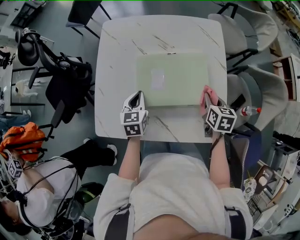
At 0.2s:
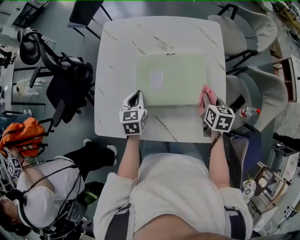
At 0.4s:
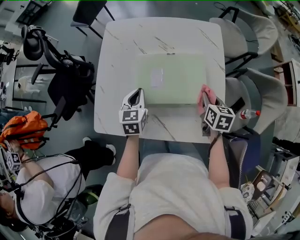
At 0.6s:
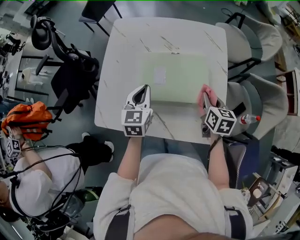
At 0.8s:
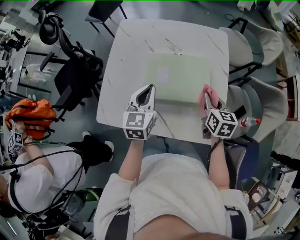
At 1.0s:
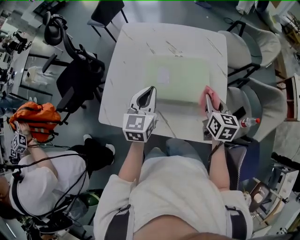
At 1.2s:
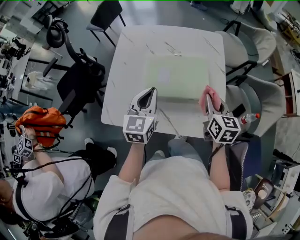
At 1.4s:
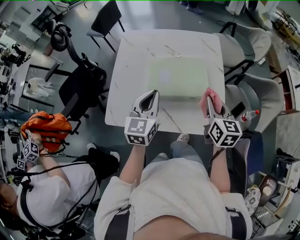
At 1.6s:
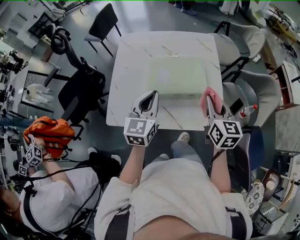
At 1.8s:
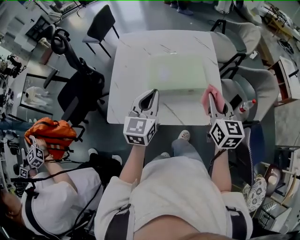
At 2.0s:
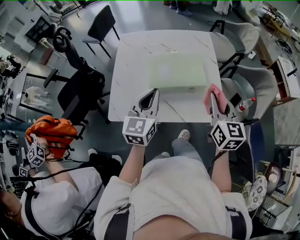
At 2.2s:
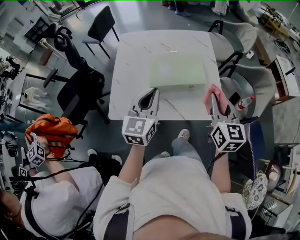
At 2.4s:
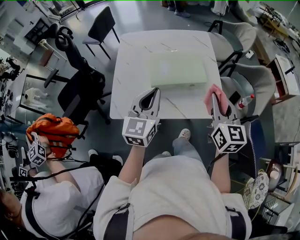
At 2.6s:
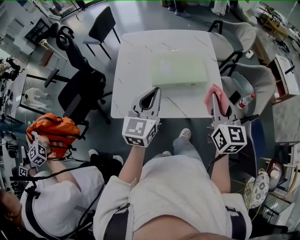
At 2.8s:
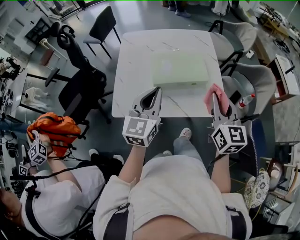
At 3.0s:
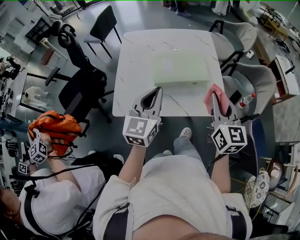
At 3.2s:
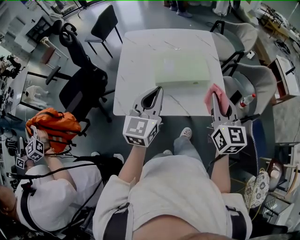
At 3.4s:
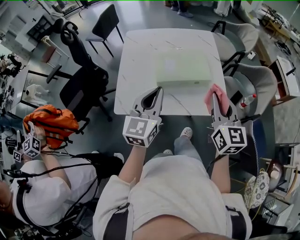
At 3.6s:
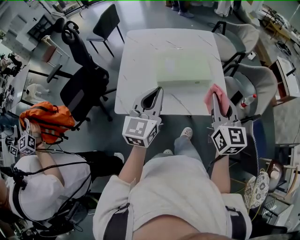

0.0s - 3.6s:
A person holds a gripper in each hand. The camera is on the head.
0.0s - 1.8s: Both grippers move upward and backward, about 25 cm. The left gripper swivels some 30 degrees. The right gripper points its fingers about 30 degrees further upward.
1.8s - 3.6s: The right gripper is displaced backward and upward by about 10 cm; the left gripper goes some 10 cm backward.

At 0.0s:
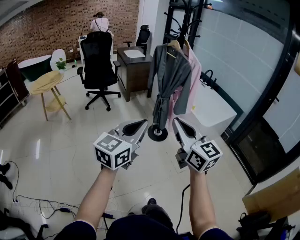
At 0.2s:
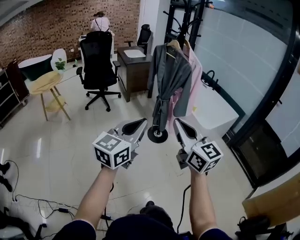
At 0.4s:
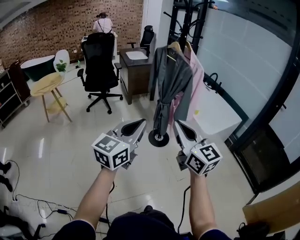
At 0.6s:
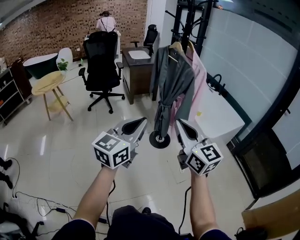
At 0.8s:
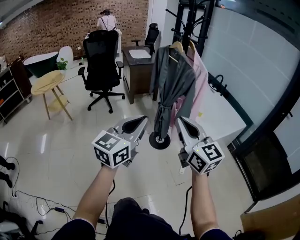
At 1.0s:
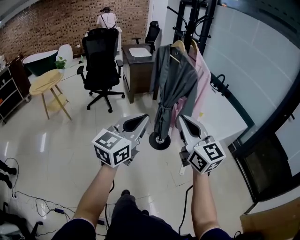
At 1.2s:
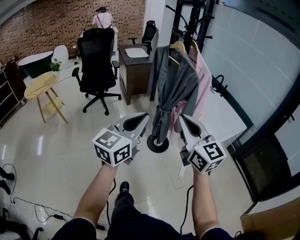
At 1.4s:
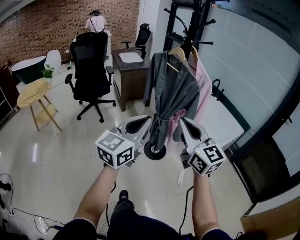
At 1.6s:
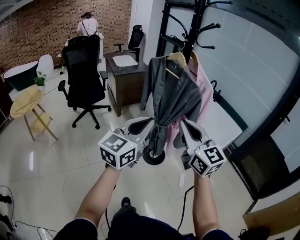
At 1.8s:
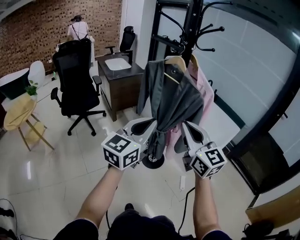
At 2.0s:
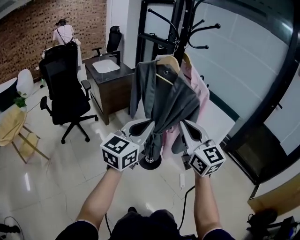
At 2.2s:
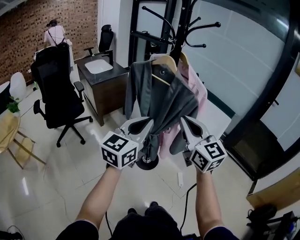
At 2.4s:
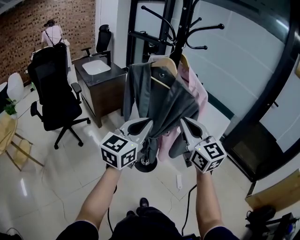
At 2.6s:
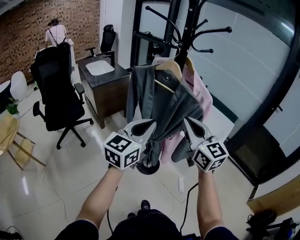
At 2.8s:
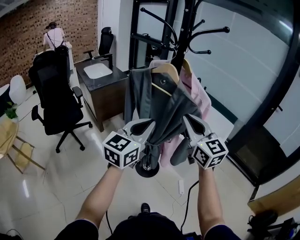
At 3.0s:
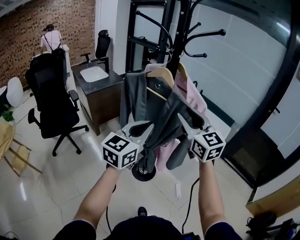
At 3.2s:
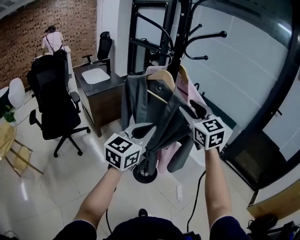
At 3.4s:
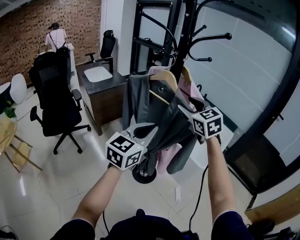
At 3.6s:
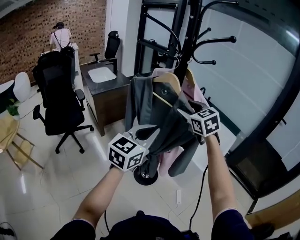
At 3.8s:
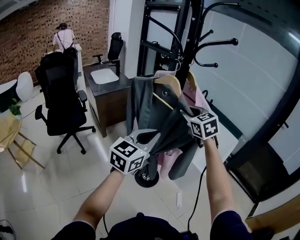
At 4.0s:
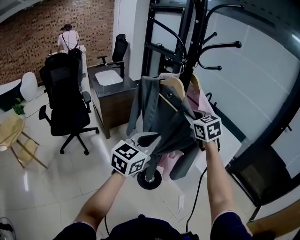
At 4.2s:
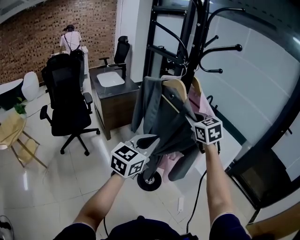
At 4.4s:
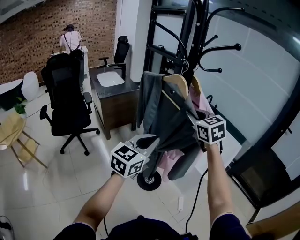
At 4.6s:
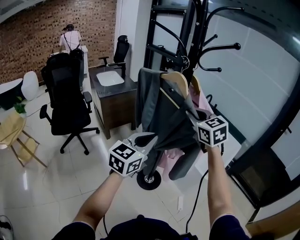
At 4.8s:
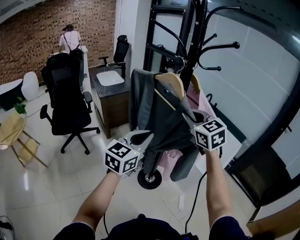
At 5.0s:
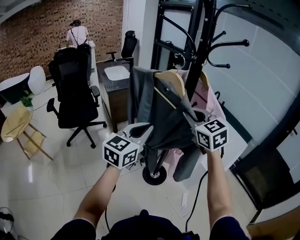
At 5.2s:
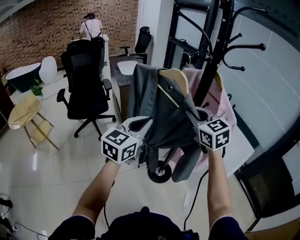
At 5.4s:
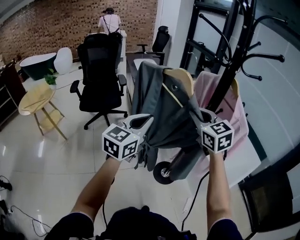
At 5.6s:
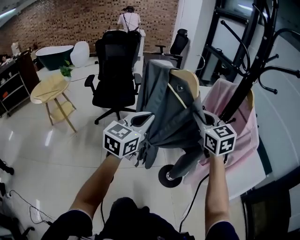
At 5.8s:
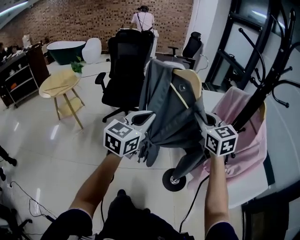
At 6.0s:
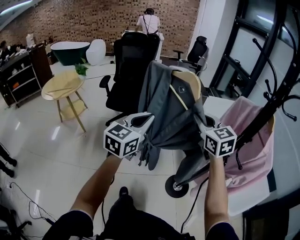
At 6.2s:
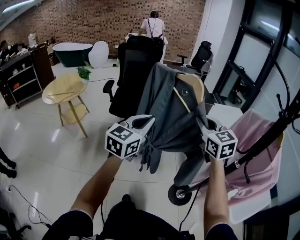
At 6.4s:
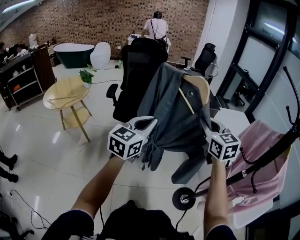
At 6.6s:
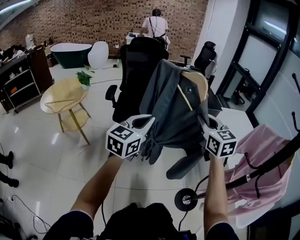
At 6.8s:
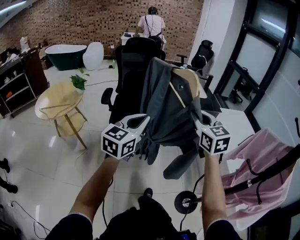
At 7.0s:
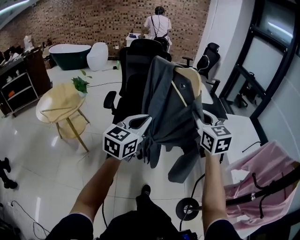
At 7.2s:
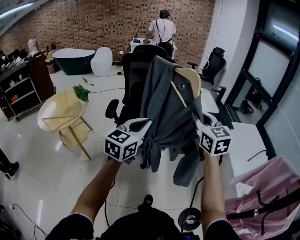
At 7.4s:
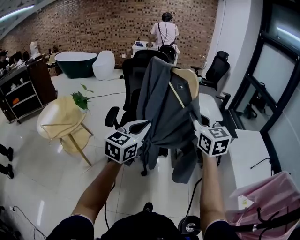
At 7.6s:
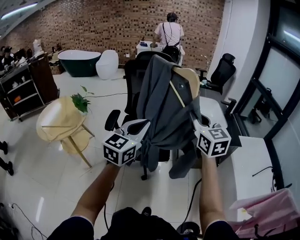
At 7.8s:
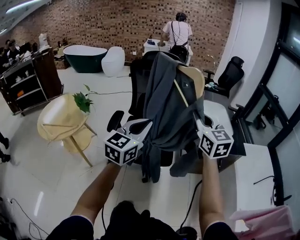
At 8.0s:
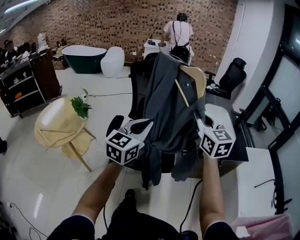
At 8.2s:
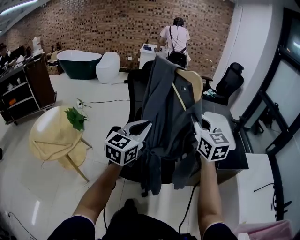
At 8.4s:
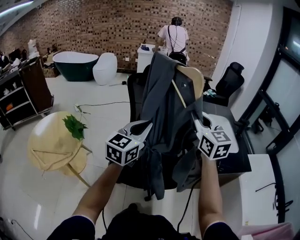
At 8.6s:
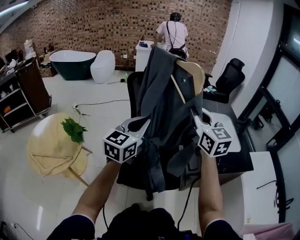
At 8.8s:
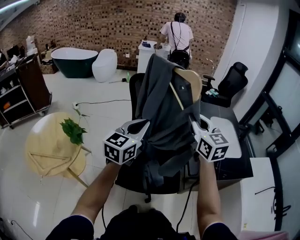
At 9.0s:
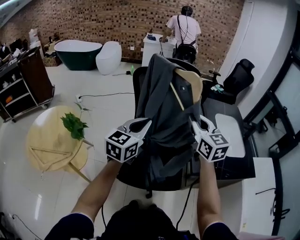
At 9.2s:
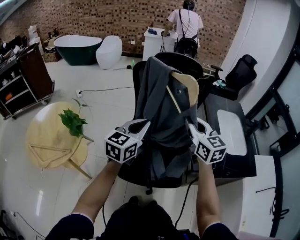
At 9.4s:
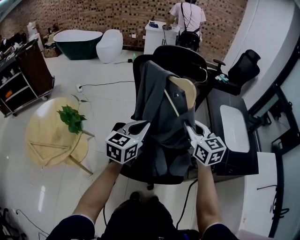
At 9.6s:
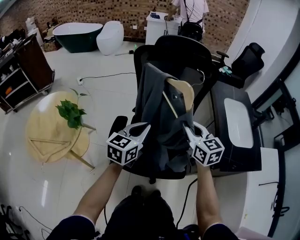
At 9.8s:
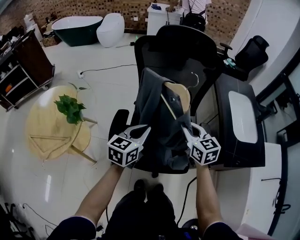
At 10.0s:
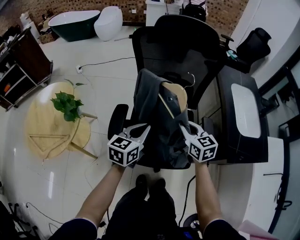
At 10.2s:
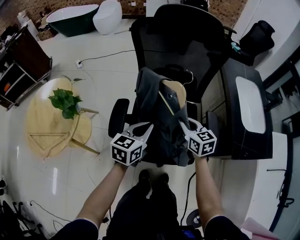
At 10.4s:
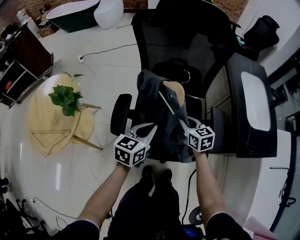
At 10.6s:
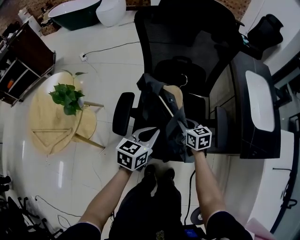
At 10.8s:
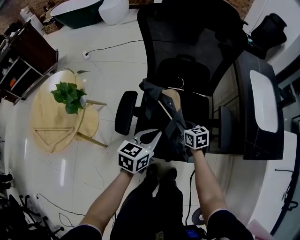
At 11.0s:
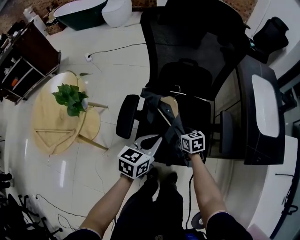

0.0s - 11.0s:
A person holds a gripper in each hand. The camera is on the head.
0.0s - 1.6s: Both grippers move forward, some 35 cm.
1.6s - 3.2s: Both grippers travel together forward, about 25 cm. The right gripper turns by about 30 degrees, and opens.
3.2s - 4.8s: The right gripper reaches some 10 cm forward, then returns, and closes its fingers.
4.8s - 6.2s: The right gripper changes place by about 35 cm, and changes its angle by roughly 20 degrees. Meanwhile the left gripper changes place by approximately 35 cm, and changes its angle by some 30 degrees.
6.2s - 7.8s: The two grippers travel together, forward and to the left, about 50 cm.
7.8s - 9.4s: The left gripper shifts about 30 cm forward and to the left; the right gripper travels forward, to the left and downward by about 30 cm.
9.4s - 11.0s: The left gripper moves downward, approximately 20 cm, and turns by approximately 20 degrees, while the right gripper heads downward, covering approximately 35 cm, and turns by roughly 30 degrees.

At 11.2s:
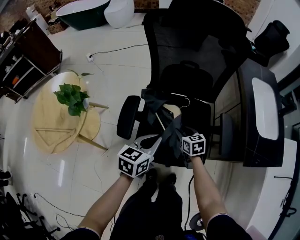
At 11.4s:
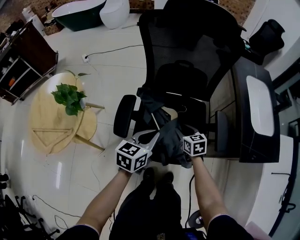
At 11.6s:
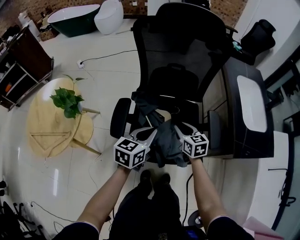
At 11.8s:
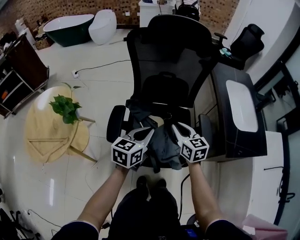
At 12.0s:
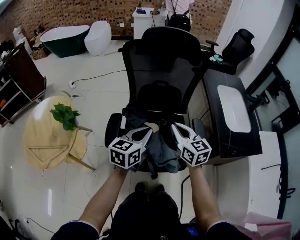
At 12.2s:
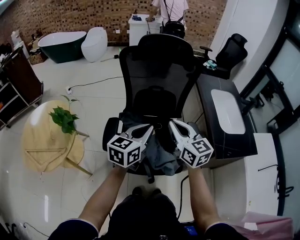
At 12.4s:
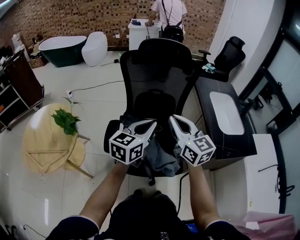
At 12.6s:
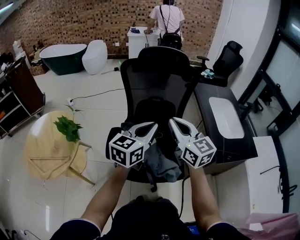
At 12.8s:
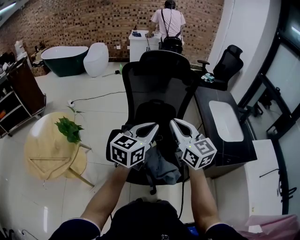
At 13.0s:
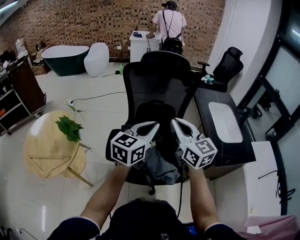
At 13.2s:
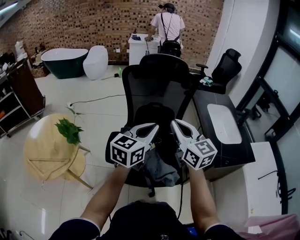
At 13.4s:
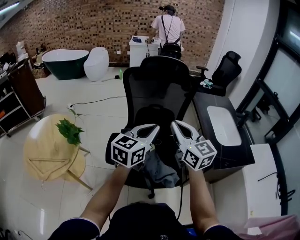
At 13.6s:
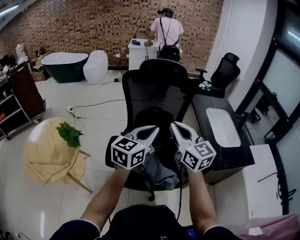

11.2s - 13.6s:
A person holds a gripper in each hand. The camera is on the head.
11.2s - 12.4s: The right gripper heads upward, covering roughly 40 cm, angles its fingers upward, by approximately 40 degrees, and closes its fingers, while the left gripper moves upward, roughly 20 cm, and swivels some 20 degrees.
12.4s - 13.6s: The left gripper heads upward, covering approximately 5 cm.

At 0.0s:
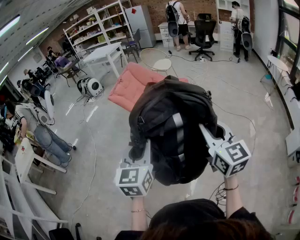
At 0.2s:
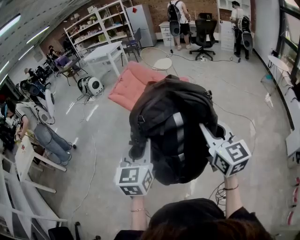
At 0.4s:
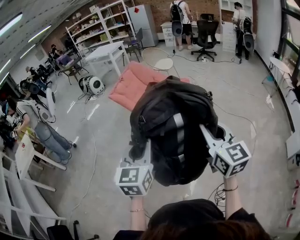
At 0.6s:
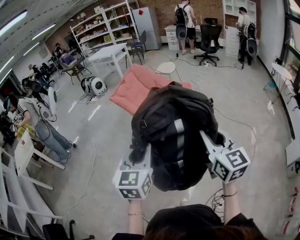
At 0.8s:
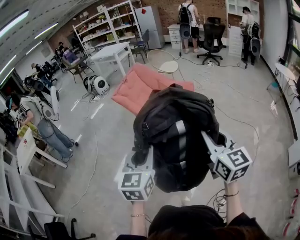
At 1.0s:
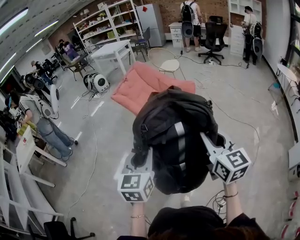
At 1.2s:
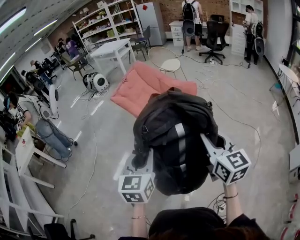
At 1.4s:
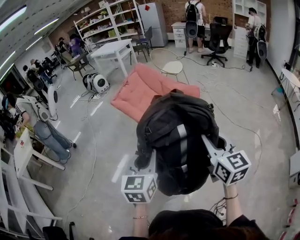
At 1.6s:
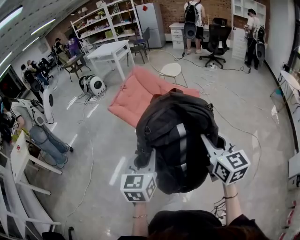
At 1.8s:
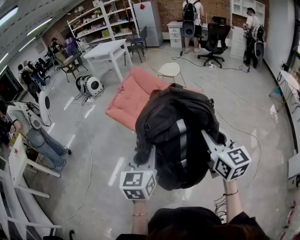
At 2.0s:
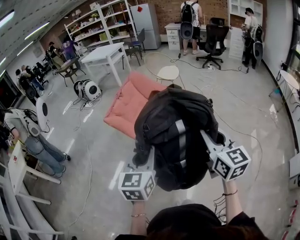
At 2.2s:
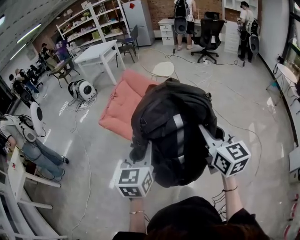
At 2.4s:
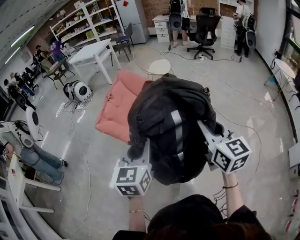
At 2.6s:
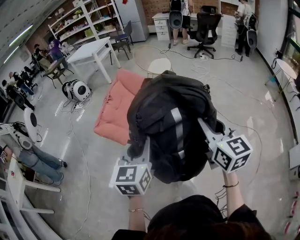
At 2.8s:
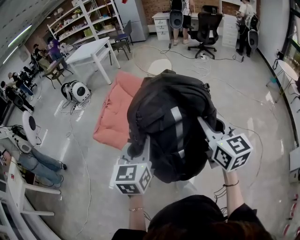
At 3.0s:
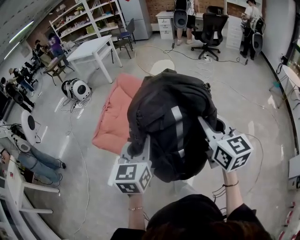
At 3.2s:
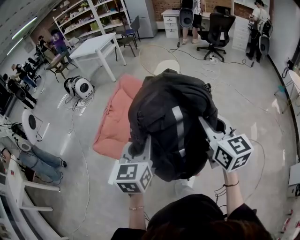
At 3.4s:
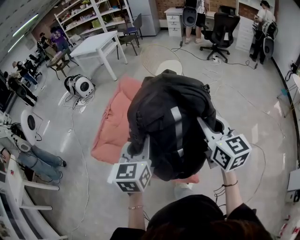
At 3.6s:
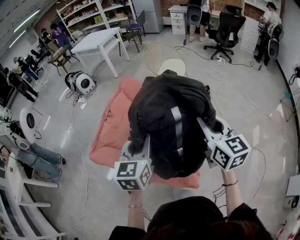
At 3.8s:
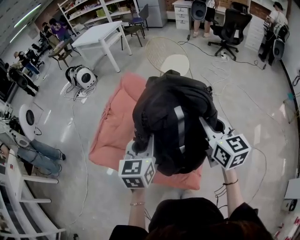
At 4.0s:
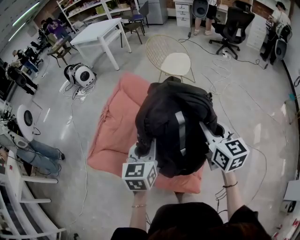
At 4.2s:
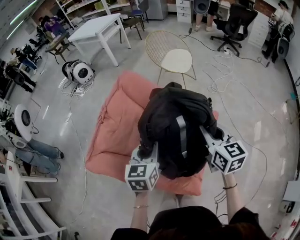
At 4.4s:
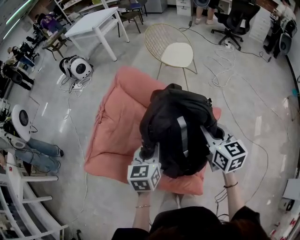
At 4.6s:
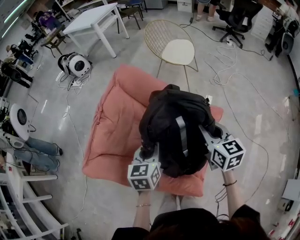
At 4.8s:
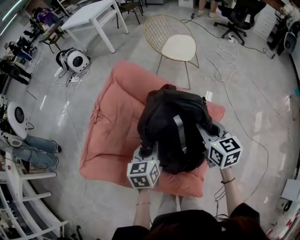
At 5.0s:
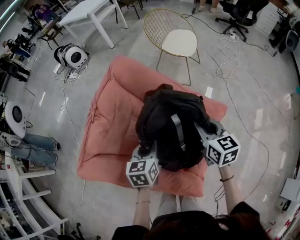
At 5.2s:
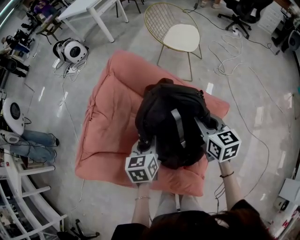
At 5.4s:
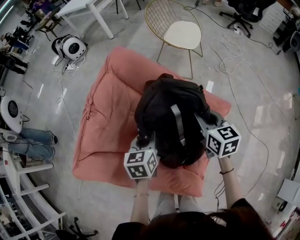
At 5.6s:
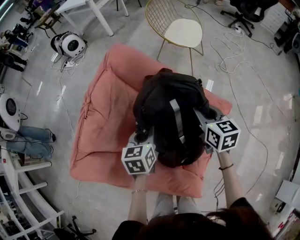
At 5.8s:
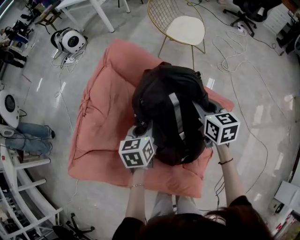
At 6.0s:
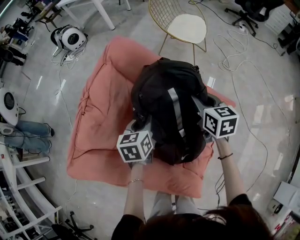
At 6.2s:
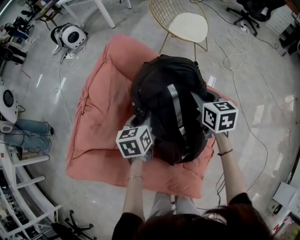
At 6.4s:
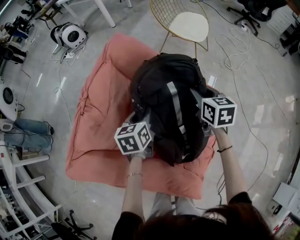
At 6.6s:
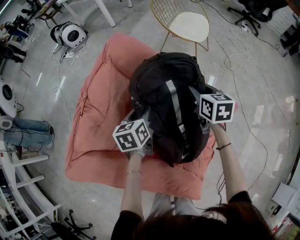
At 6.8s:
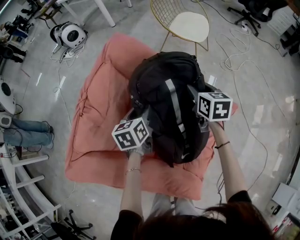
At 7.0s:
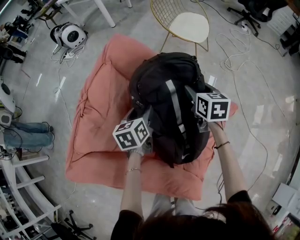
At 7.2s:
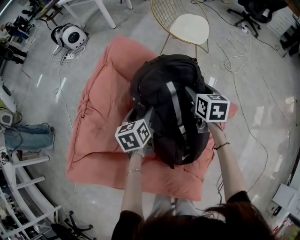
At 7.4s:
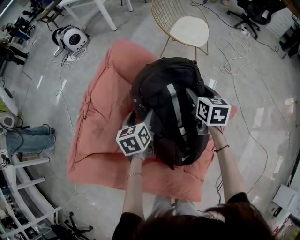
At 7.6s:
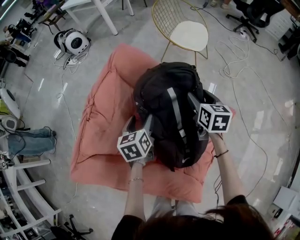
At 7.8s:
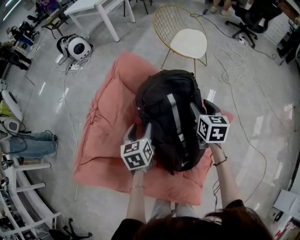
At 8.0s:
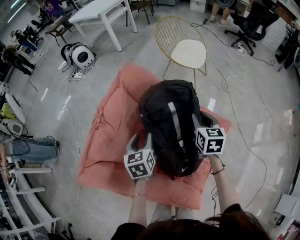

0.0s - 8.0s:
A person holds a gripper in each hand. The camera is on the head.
0.0s - 1.6s: Both grippers travel together forward, about 20 cm.
1.6s - 3.2s: The pair of grippers is taken forward, approximately 40 cm.
3.2s - 4.8s: The left gripper heads downward and forward, covering about 35 cm, and rotates approximately 30 degrees; the right gripper heads forward and downward, covering about 35 cm, and turns by approximately 20 degrees.
4.8s - 6.4s: The two grippers go about 20 cm forward and downward.
6.4s - 8.0s: The left gripper travels upward by approximately 5 cm, and opens, then closes once more; the right gripper shifts by about 5 cm, and opens, then closes again.
